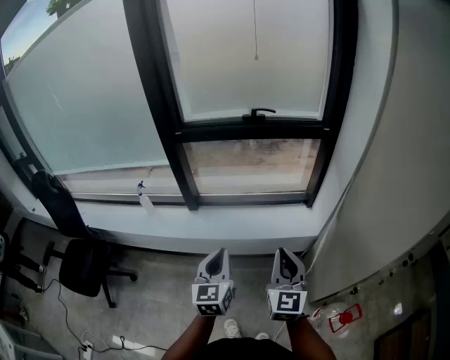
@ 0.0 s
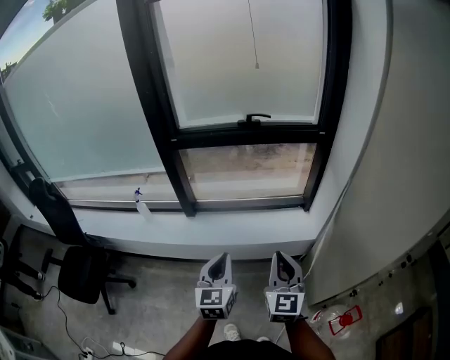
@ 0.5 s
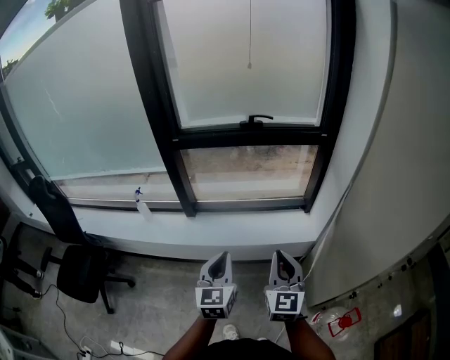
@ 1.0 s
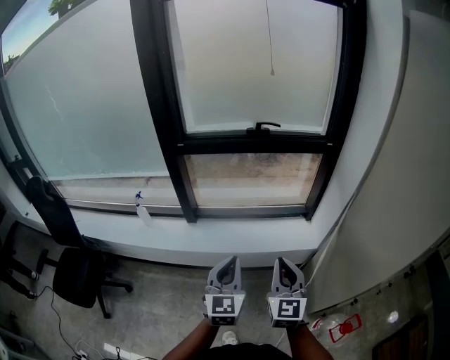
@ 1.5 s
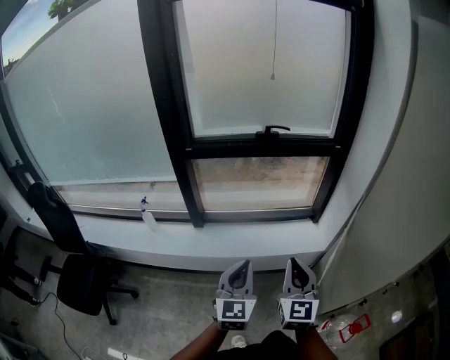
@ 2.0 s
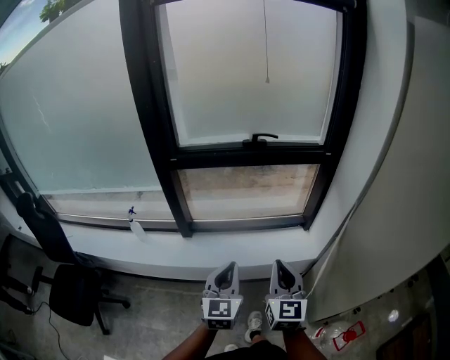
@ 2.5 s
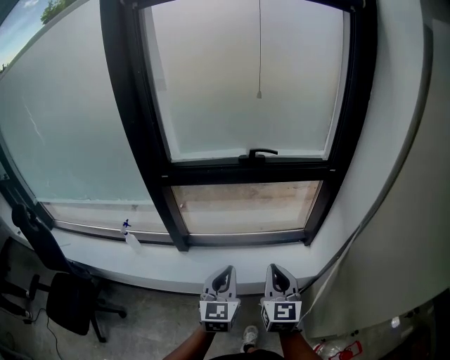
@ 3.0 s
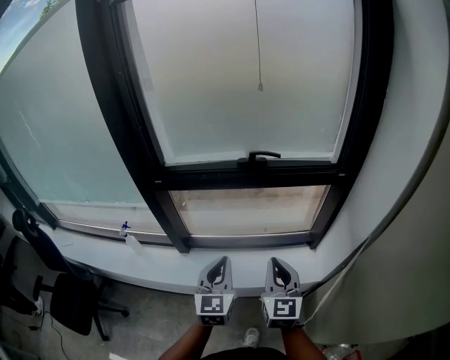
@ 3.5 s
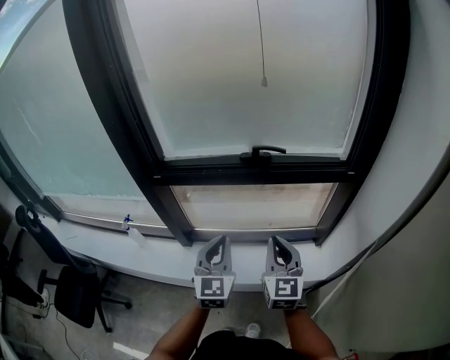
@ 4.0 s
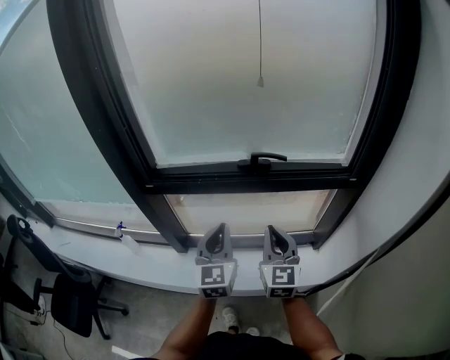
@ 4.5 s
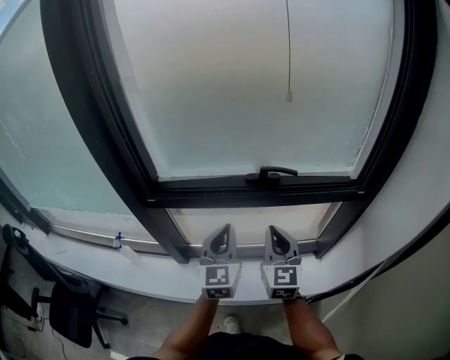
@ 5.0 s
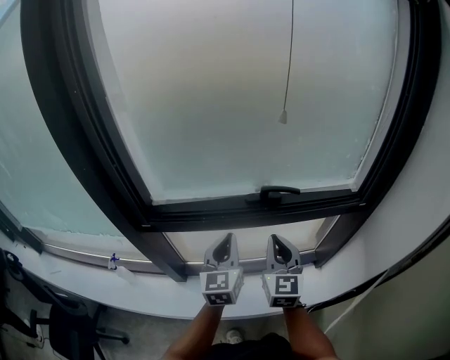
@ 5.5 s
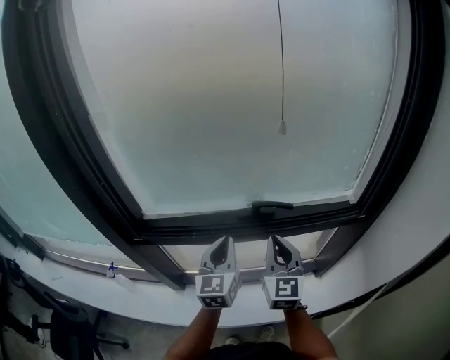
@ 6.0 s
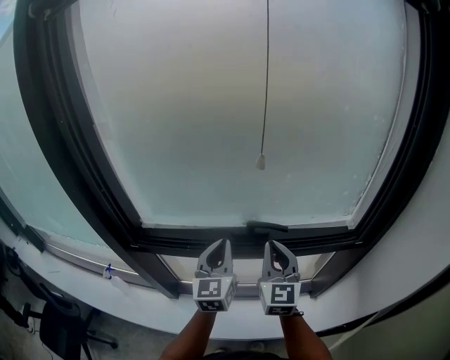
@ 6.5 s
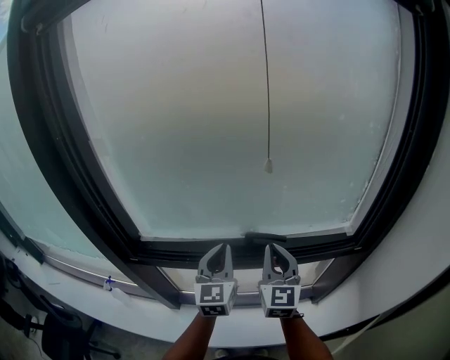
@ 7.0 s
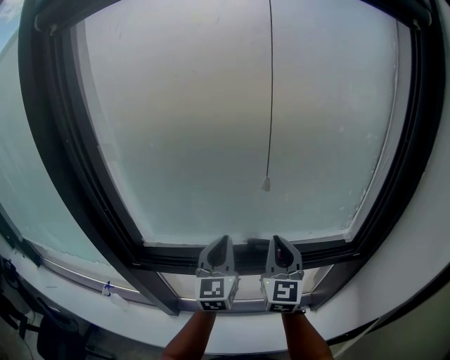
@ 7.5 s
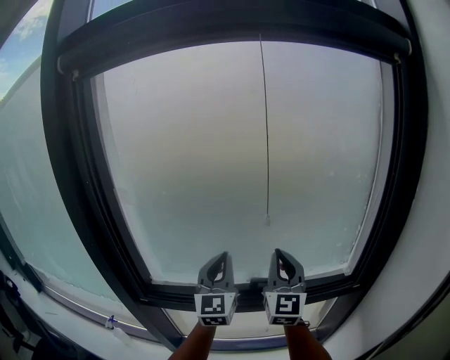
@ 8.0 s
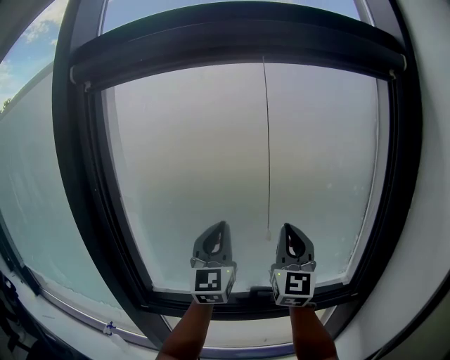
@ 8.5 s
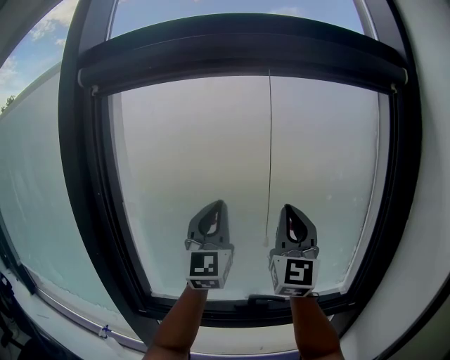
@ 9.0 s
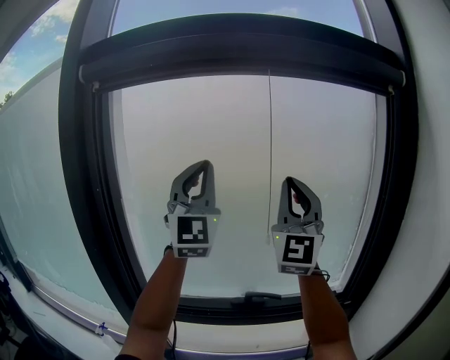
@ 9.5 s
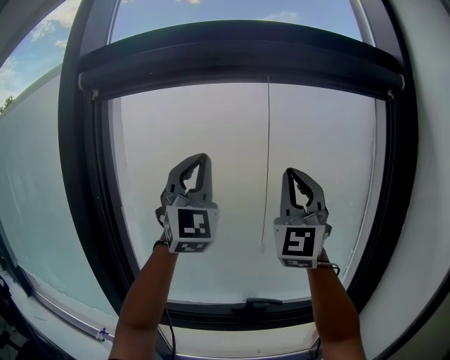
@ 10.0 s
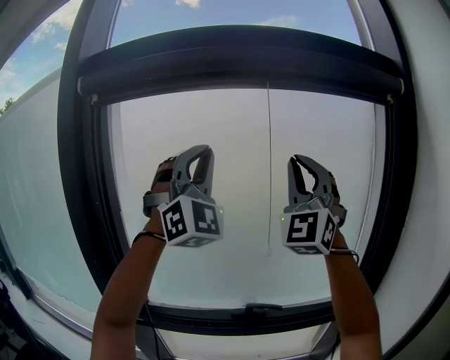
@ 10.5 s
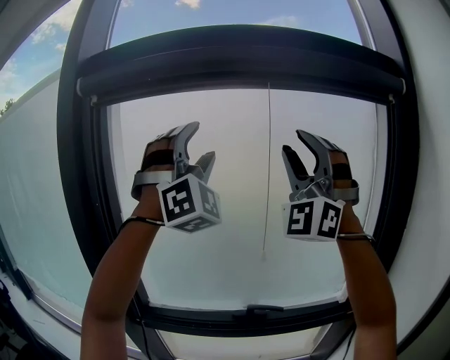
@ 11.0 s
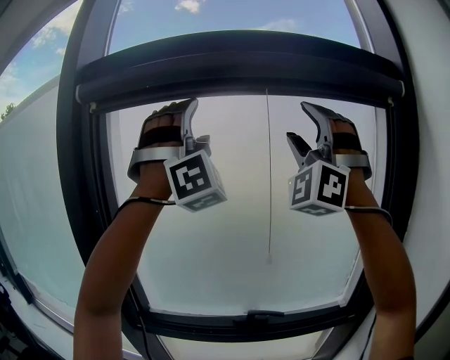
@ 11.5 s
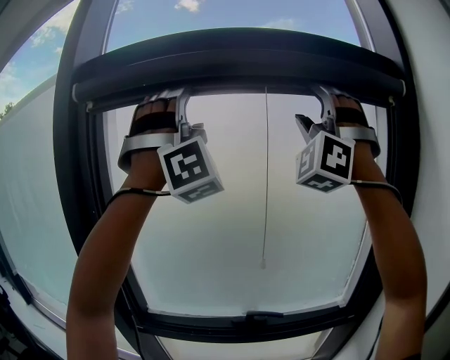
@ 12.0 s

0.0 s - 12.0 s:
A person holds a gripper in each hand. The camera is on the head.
0.0 s - 2.0 s: The right gripper changes place by about 5 cm.
2.0 s - 4.0 s: The two grippers go some 30 cm forward.
4.0 s - 6.0 s: Both grippers move forward, approximately 25 cm.
6.0 s - 8.0 s: The right gripper shifts some 20 cm upward and forward, and changes its angle by about 20 degrees. The left gripper travels upward by about 20 cm, and rotates approximately 30 degrees.
8.0 s - 10.0 s: The two grippers go some 30 cm upward. The right gripper swivels about 40 degrees. Meanwhile the left gripper changes its angle by approximately 40 degrees.
10.0 s - 12.0 s: Both grippers move upward, about 15 cm. The left gripper rotates around the line of its fingers by about 50 degrees, clockwise from behind, and opens, while the right gripper twists some 50 degrees counterclockwise, seen from behind, and opens up.

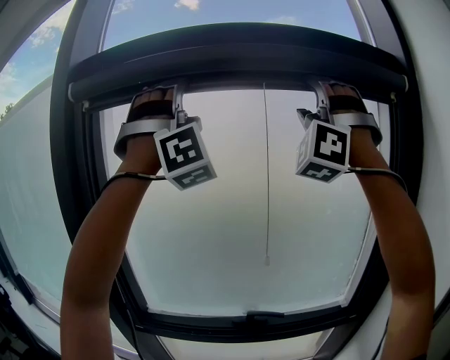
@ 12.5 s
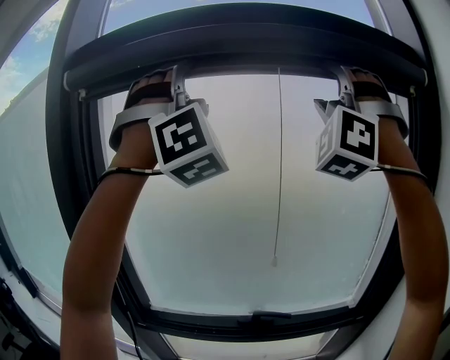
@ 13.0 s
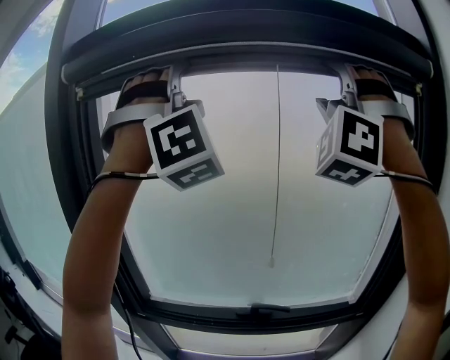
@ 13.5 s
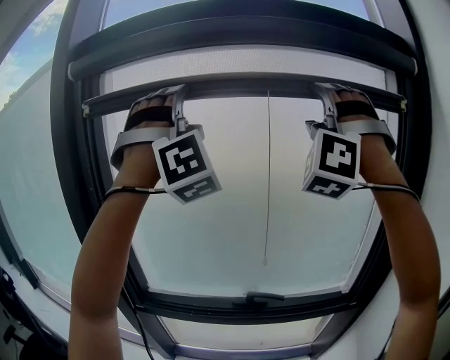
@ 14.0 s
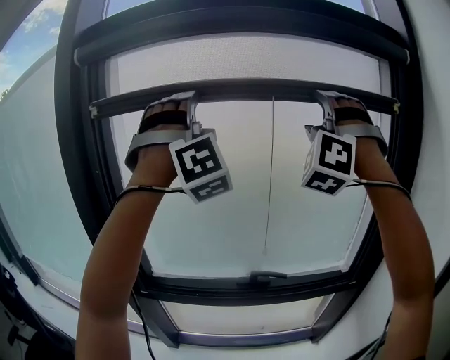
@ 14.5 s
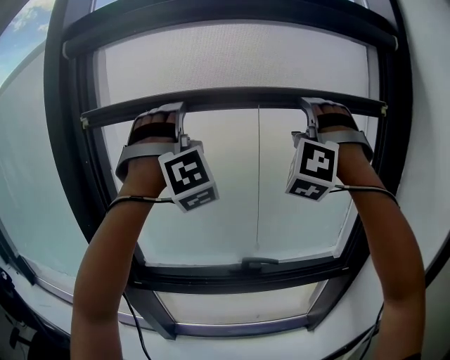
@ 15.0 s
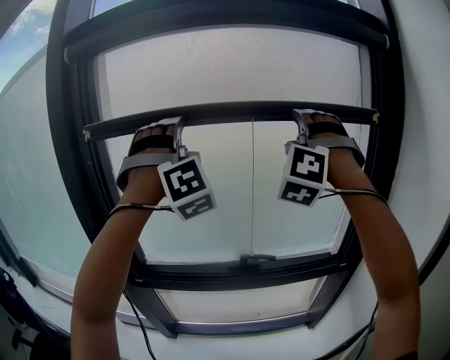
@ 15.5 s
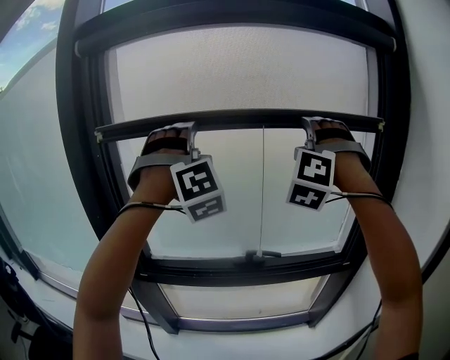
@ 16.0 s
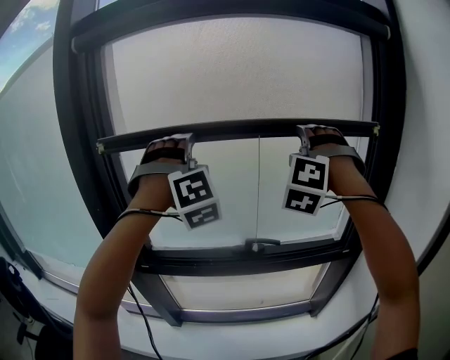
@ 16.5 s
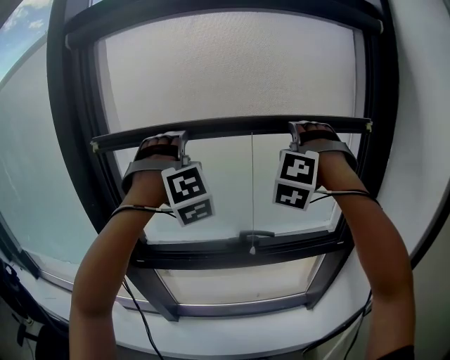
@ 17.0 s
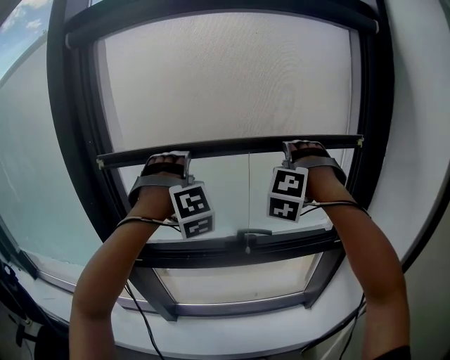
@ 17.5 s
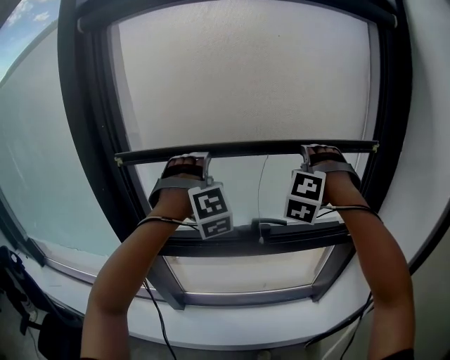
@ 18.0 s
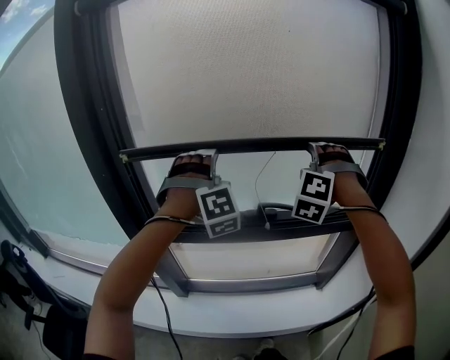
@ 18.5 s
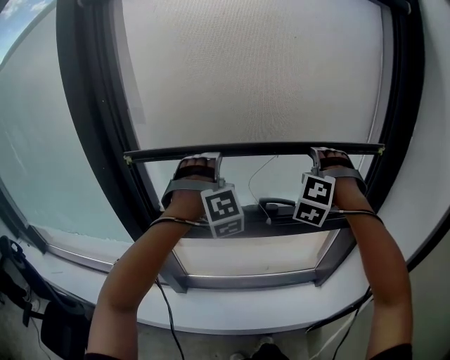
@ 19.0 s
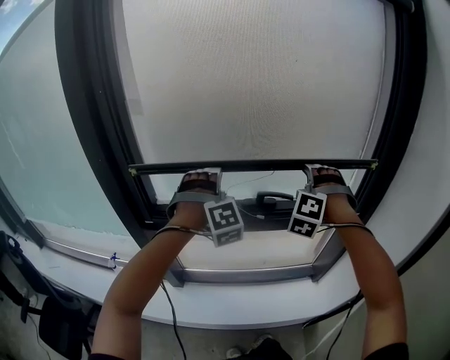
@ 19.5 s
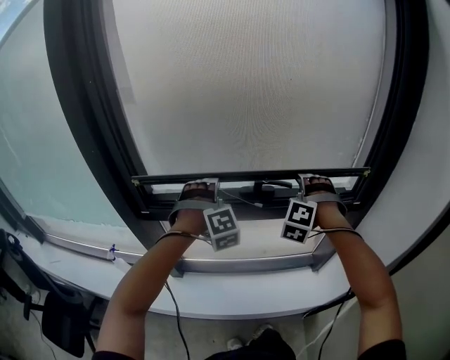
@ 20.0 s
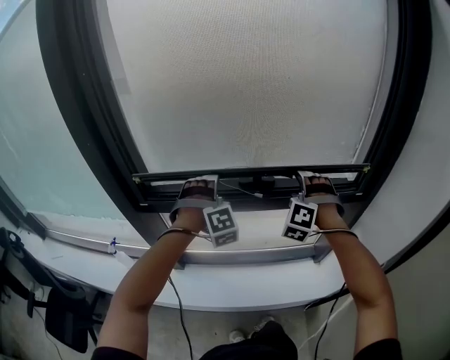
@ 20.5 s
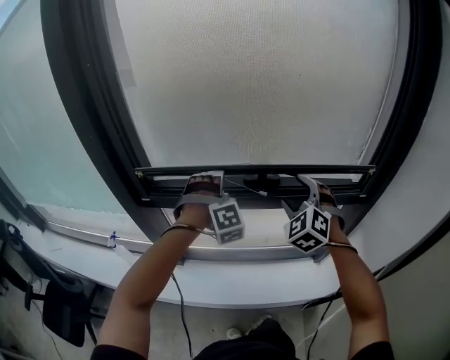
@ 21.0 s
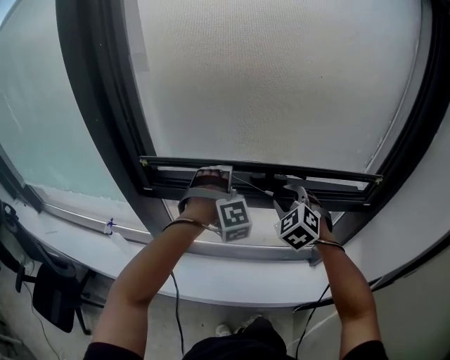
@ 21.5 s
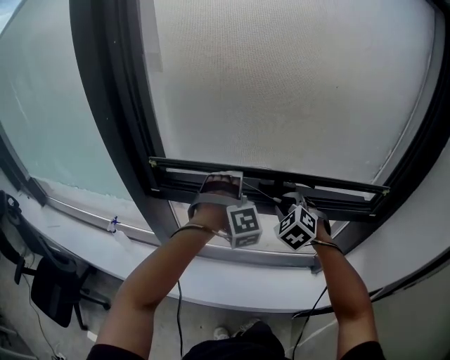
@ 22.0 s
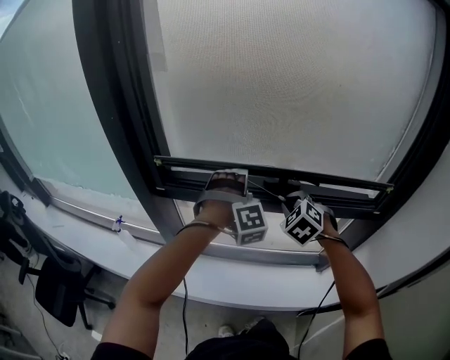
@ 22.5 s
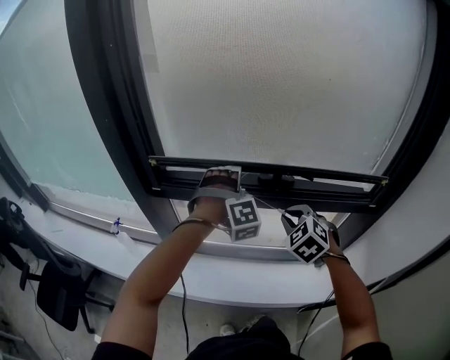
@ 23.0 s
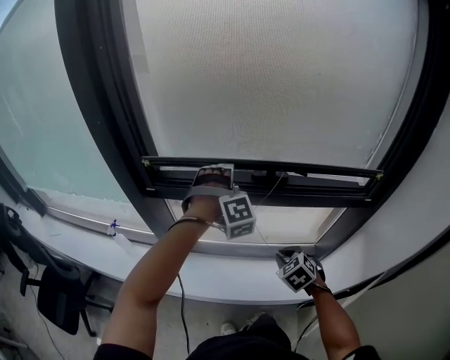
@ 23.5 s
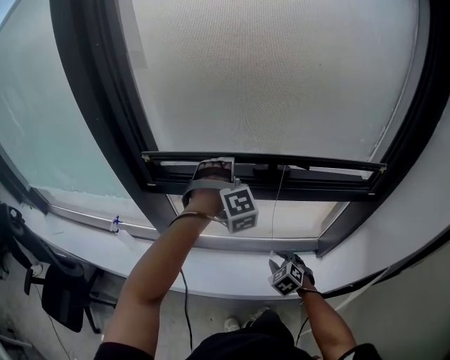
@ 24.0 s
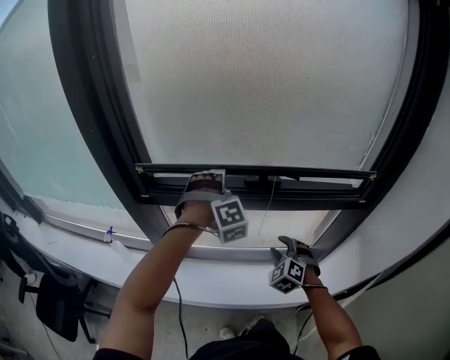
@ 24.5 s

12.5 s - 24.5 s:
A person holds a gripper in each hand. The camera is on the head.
12.5 s - 14.5 s: Both grippers move downward, approximately 15 cm.
14.5 s - 16.5 s: The grippers both shift downward by about 15 cm. The right gripper turns by roughly 20 degrees, while the left gripper rotates roughly 20 degrees.
16.5 s - 18.5 s: Both grippers travel together downward, some 15 cm.
18.5 s - 20.5 s: The grippers both shift downward by approximately 20 cm.
20.5 s - 22.5 s: The right gripper shifts roughly 10 cm to the left, swivels roughly 40 degrees, and closes.
22.5 s - 24.5 s: The right gripper shifts approximately 15 cm downward and backward, and opens up.

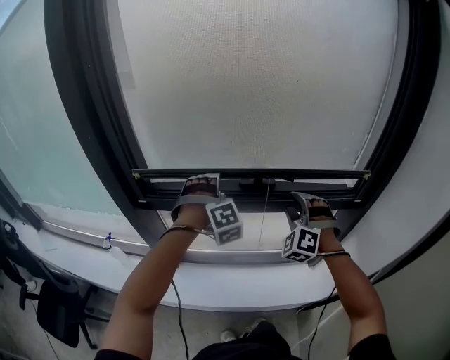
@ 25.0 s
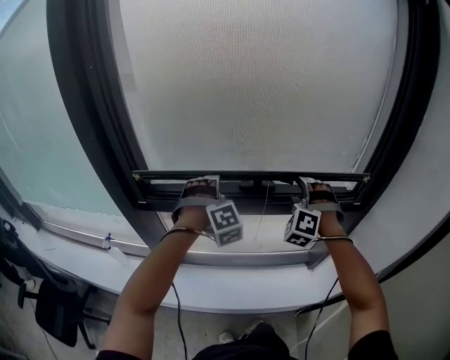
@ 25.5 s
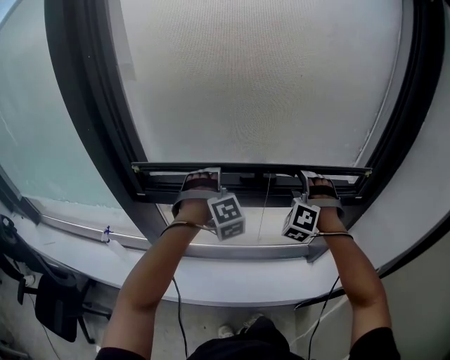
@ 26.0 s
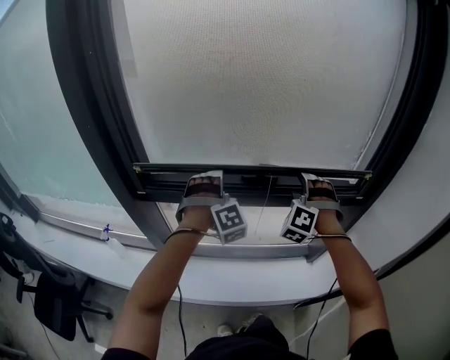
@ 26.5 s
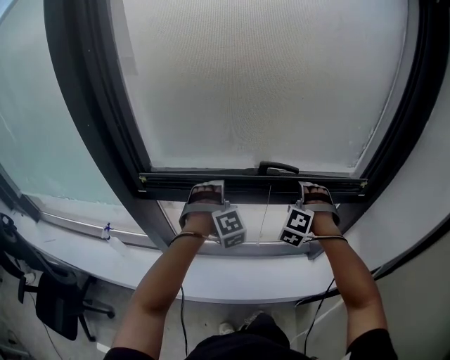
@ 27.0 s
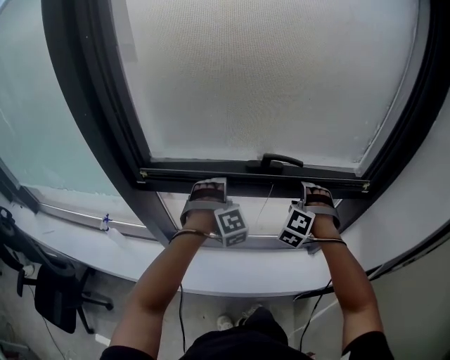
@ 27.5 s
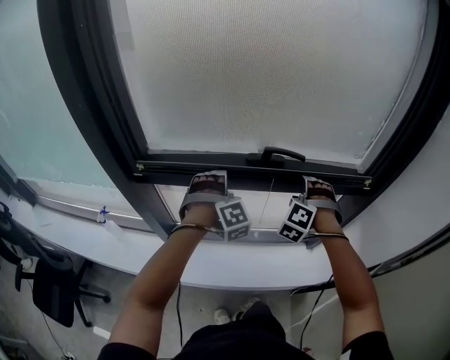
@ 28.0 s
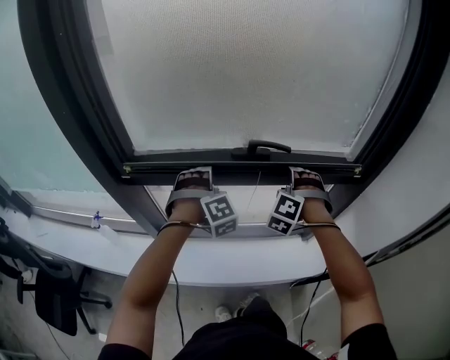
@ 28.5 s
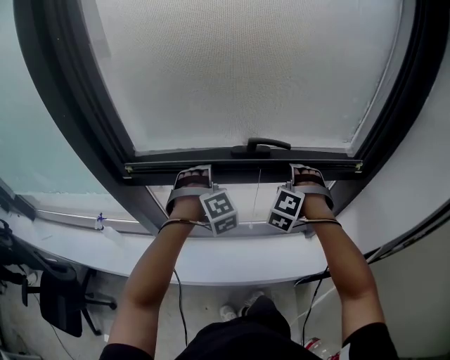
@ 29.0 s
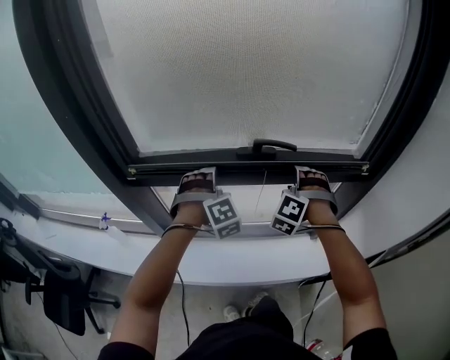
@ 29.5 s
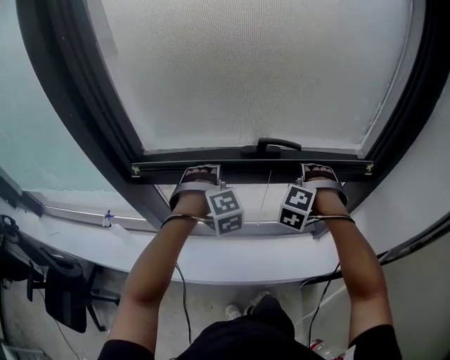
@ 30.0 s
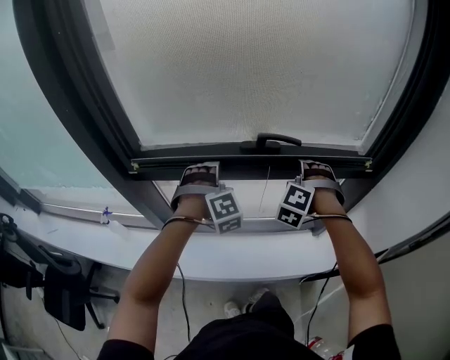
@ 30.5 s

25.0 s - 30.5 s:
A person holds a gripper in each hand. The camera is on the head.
25.0 s - 27.0 s: The right gripper ends up some 5 cm from where it was, and opens; the left gripper goes about 5 cm downward.
27.0 s - 30.5 s: The grippers make only small movements.
